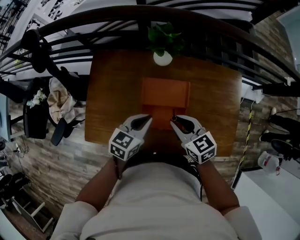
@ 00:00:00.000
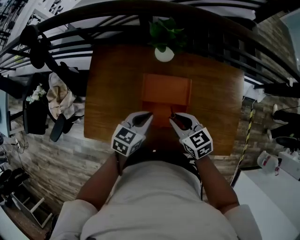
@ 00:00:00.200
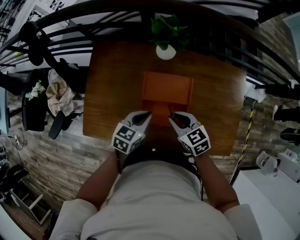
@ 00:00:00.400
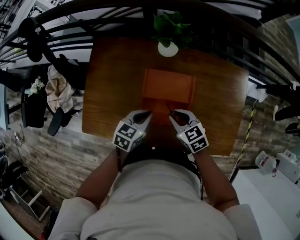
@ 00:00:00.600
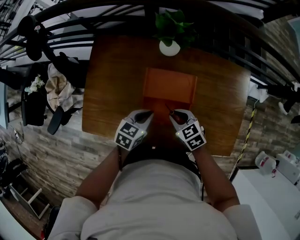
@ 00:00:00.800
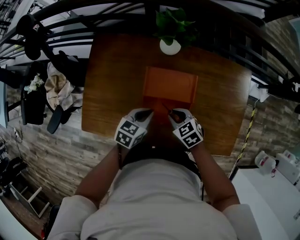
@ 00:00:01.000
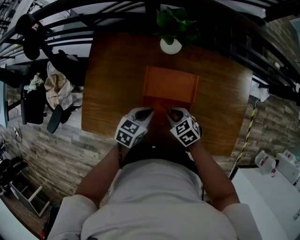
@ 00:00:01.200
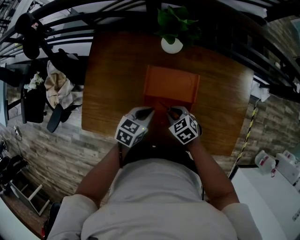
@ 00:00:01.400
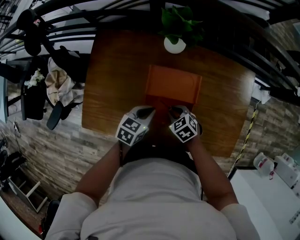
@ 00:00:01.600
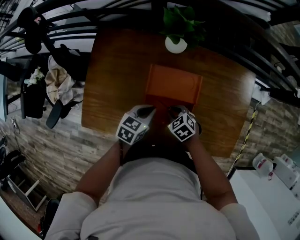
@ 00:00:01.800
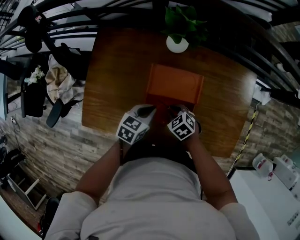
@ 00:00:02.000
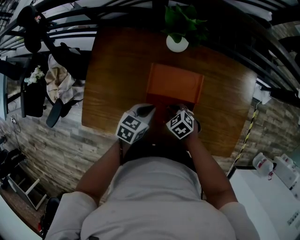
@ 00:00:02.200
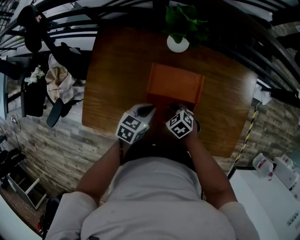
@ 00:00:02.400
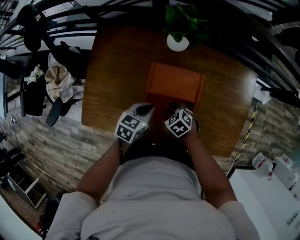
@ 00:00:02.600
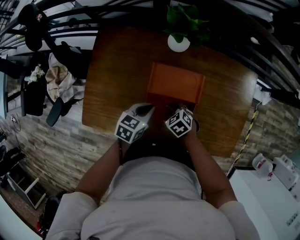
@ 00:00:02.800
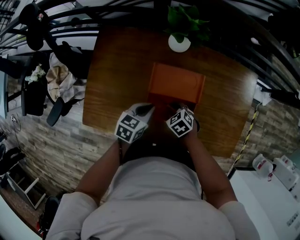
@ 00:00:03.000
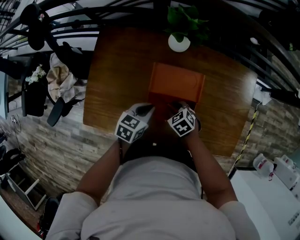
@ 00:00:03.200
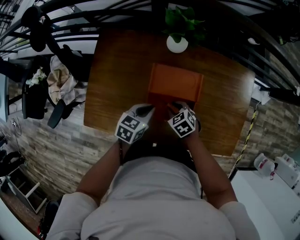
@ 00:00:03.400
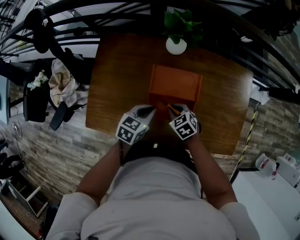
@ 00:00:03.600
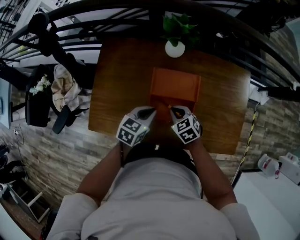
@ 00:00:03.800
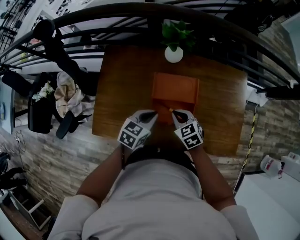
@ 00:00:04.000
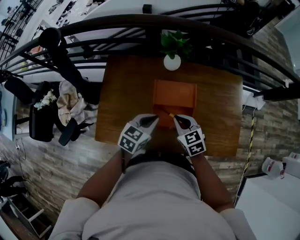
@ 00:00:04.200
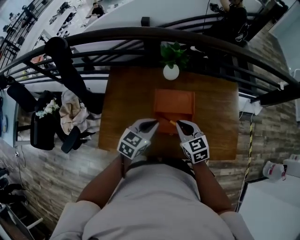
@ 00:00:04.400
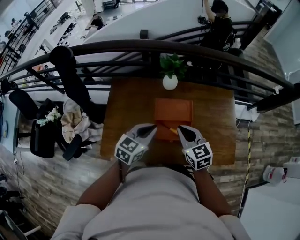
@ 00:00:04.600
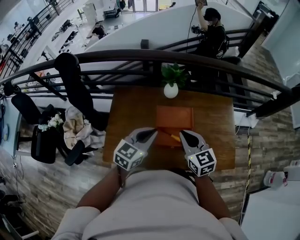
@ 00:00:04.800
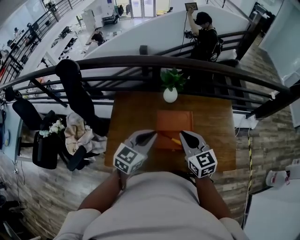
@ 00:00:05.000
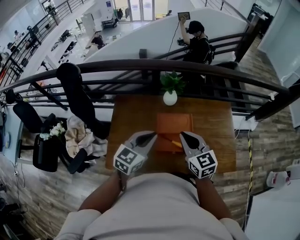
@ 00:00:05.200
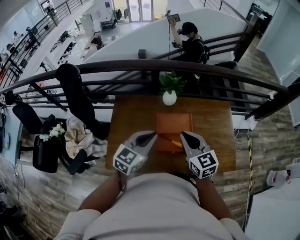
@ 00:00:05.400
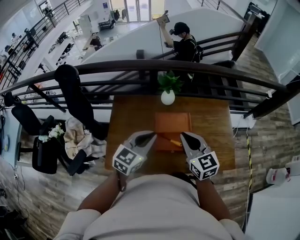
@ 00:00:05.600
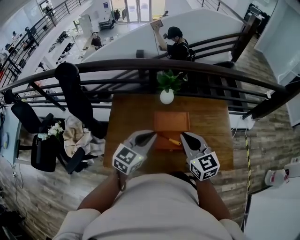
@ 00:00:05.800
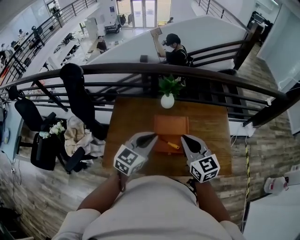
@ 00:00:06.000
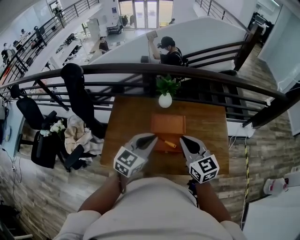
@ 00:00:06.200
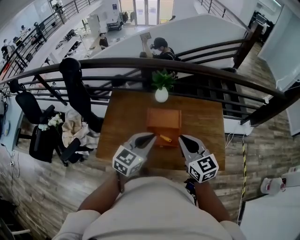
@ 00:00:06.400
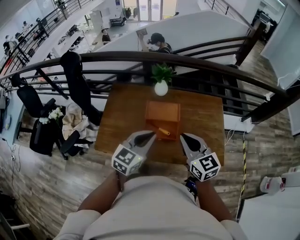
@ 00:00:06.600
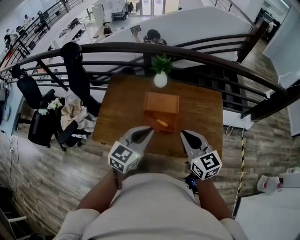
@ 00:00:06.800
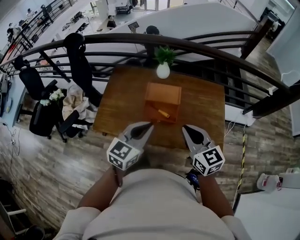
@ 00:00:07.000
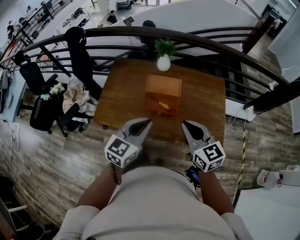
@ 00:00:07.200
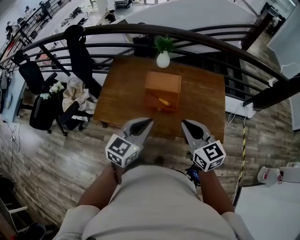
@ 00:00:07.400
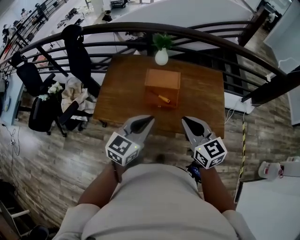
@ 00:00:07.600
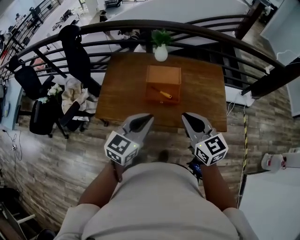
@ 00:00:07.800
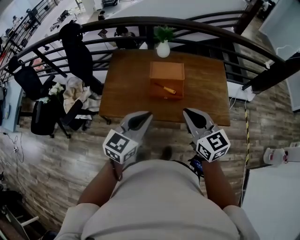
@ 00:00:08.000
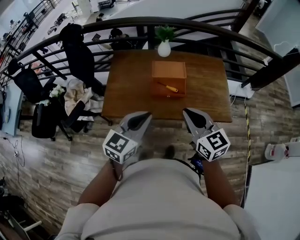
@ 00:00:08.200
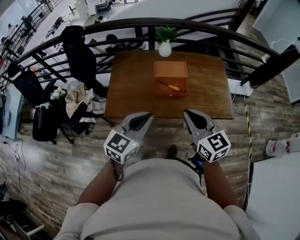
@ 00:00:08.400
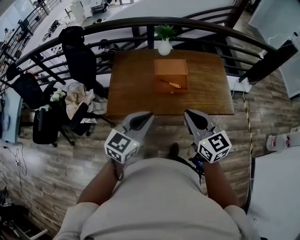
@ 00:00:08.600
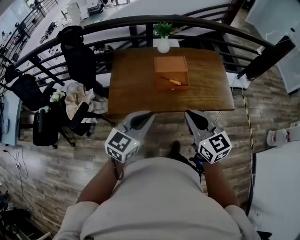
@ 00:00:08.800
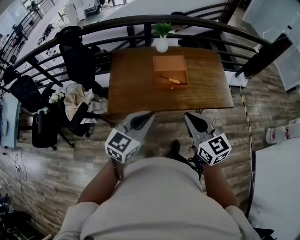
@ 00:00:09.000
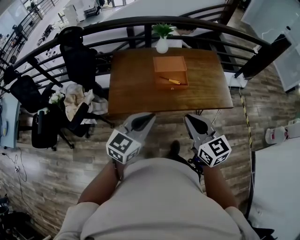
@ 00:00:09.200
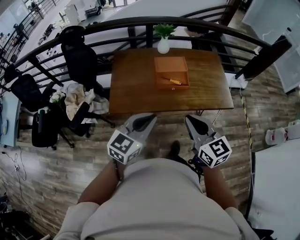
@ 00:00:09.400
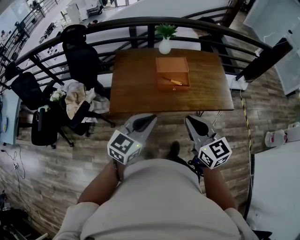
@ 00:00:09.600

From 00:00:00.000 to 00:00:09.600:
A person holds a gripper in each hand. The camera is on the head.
From 00:00:00.000 to 00:00:01.600: The right gripper goes approximately 20 cm downward, and swivels some 30 degrees; the left gripper shifts some 10 cm downward.
From 00:00:01.600 to 00:00:03.200: The grippers stay close to where they were, moving slightly.
From 00:00:03.200 to 00:00:04.800: The grippers both shift upward by about 30 cm. The left gripper swivels some 30 degrees. The right gripper tips its fingers upward by approximately 40 degrees, and closes.
From 00:00:04.800 to 00:00:06.400: Both grippers move to the right, backward and upward, some 15 cm.
From 00:00:06.400 to 00:00:08.000: Both grippers move backward, about 20 cm.
From 00:00:08.000 to 00:00:09.600: Both grippers move backward and to the left, approximately 15 cm.

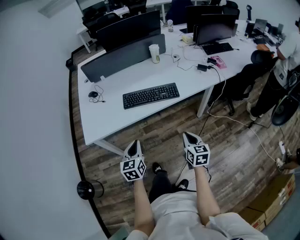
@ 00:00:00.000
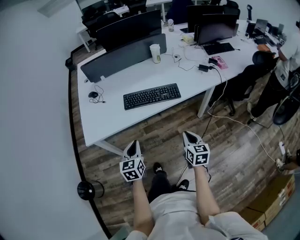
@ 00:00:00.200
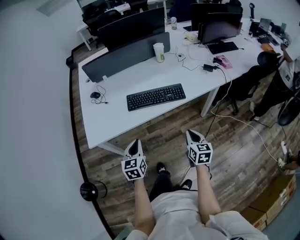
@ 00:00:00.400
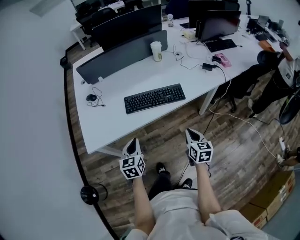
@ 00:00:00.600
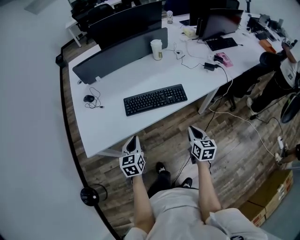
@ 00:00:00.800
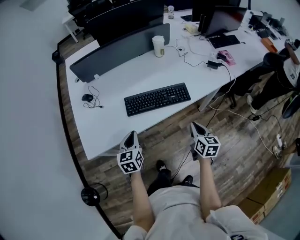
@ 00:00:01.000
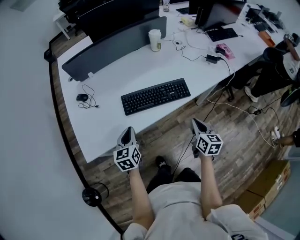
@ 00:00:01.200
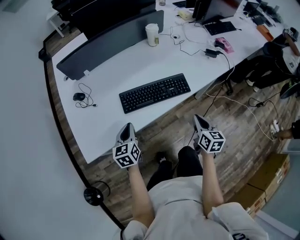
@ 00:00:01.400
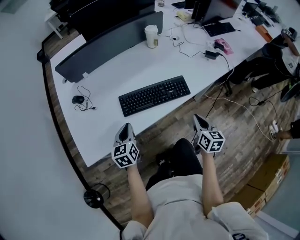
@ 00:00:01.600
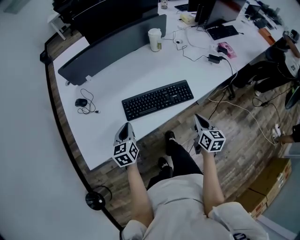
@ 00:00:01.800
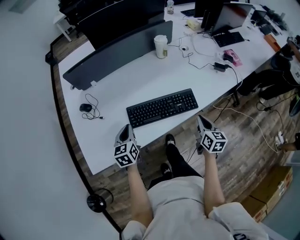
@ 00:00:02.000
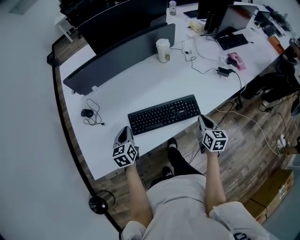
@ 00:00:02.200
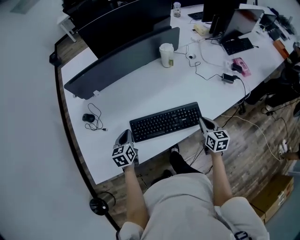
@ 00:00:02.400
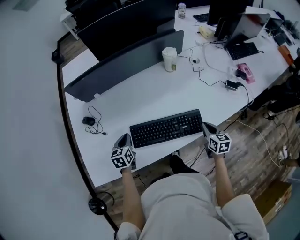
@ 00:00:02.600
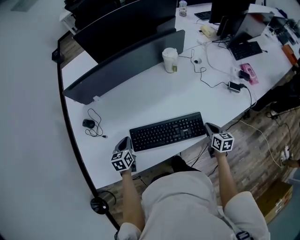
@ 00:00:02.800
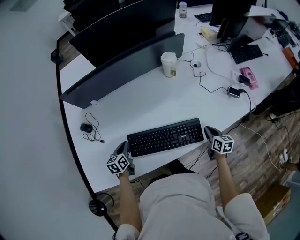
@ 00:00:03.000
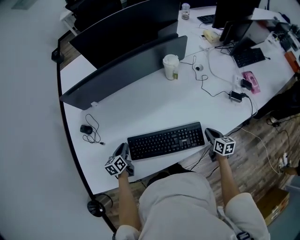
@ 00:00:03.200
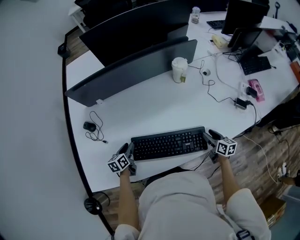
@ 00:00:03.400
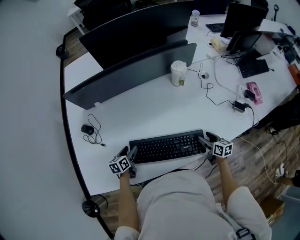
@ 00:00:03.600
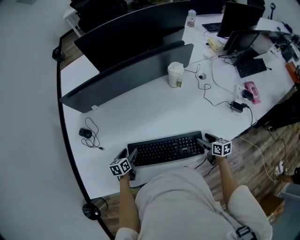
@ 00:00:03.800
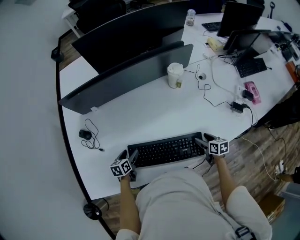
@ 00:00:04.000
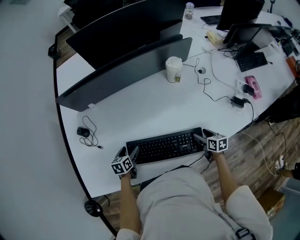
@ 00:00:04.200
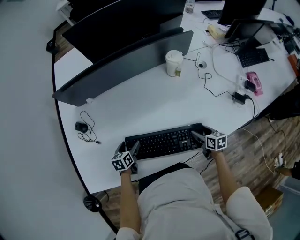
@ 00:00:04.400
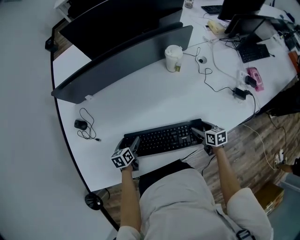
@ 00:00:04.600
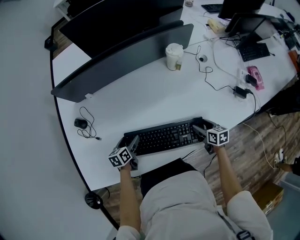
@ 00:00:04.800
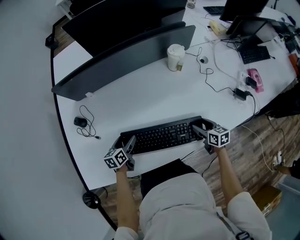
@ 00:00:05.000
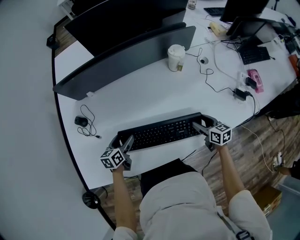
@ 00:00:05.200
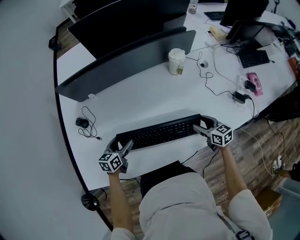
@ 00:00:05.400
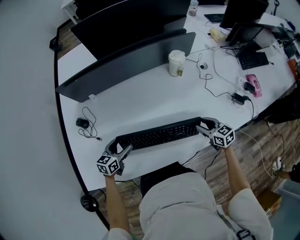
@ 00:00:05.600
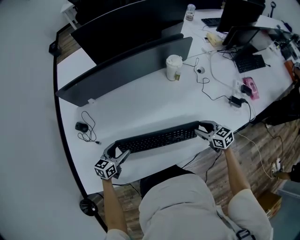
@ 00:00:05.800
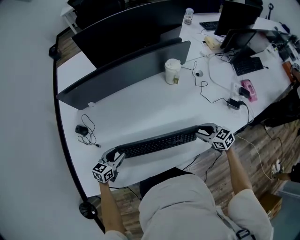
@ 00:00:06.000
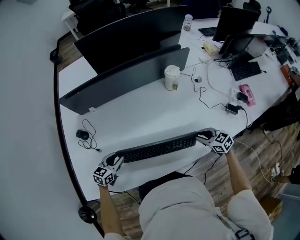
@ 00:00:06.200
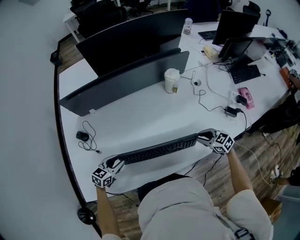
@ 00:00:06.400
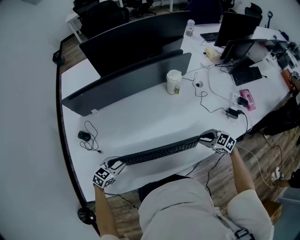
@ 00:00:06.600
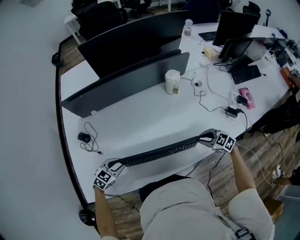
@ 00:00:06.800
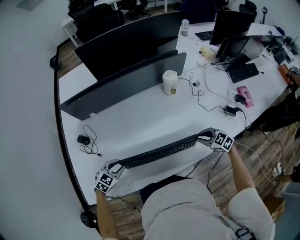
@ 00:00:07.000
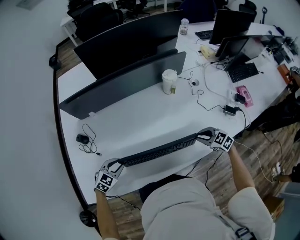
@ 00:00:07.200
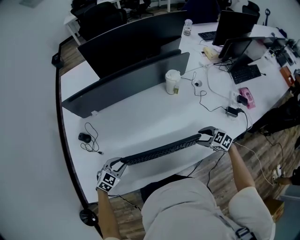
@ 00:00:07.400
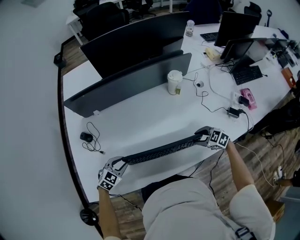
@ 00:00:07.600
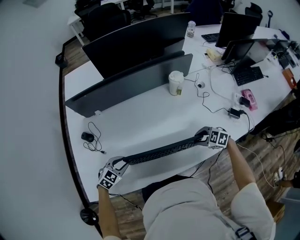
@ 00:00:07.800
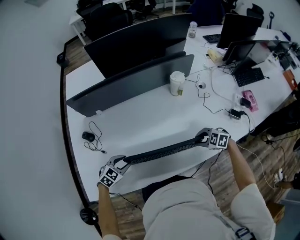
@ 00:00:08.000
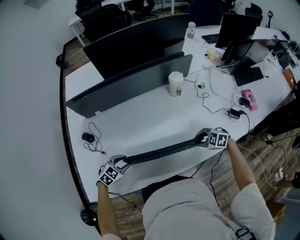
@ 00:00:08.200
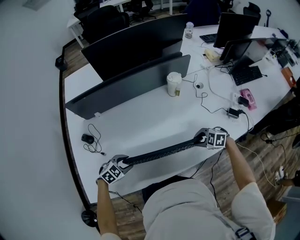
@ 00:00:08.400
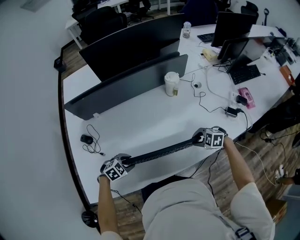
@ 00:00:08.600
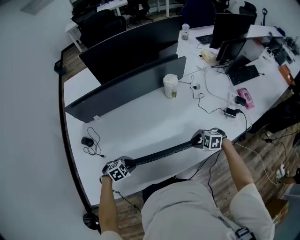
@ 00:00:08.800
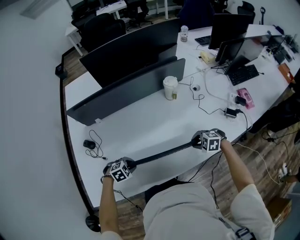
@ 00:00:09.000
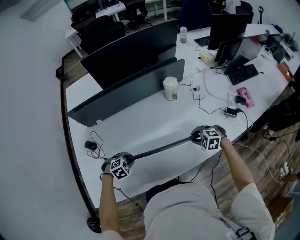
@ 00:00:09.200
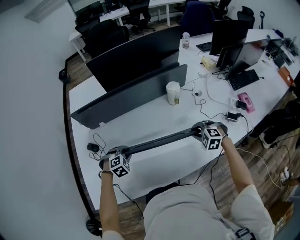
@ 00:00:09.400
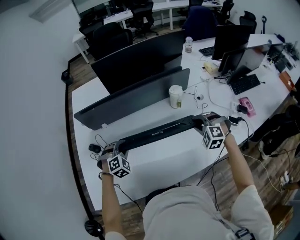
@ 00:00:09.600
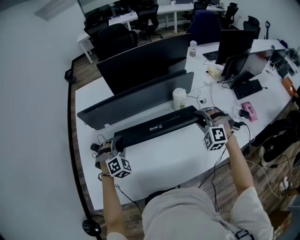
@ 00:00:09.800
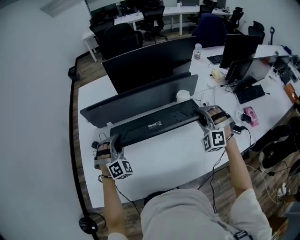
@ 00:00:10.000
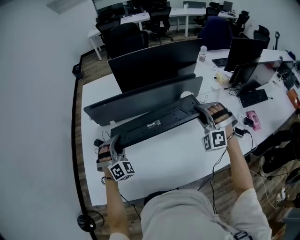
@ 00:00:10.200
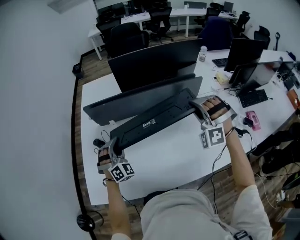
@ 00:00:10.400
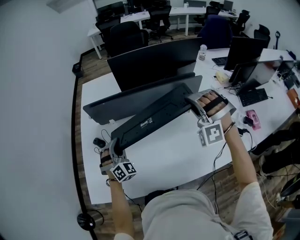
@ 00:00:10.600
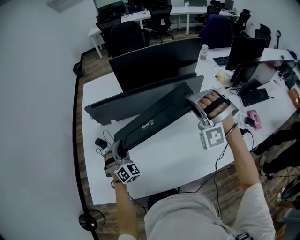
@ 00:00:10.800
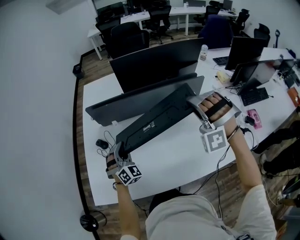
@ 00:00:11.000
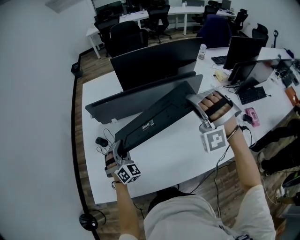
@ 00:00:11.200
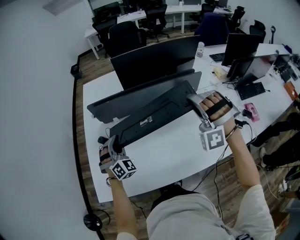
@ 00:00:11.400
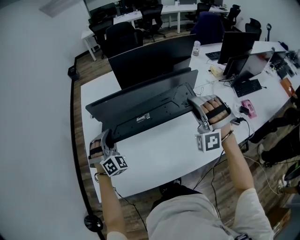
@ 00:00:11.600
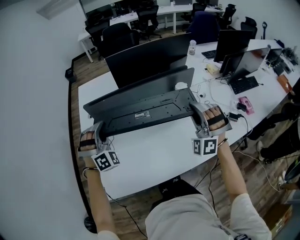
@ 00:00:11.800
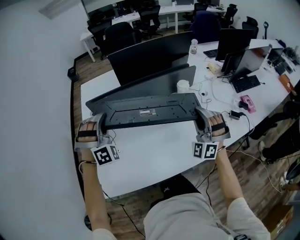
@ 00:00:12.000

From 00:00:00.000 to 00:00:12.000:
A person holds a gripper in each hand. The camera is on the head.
From 00:00:00.000 to 00:00:01.600: The left gripper heads forward and to the left, covering about 30 cm. Meanwhile the right gripper moves forward, some 20 cm.
From 00:00:01.600 to 00:00:03.000: The left gripper is displaced forward and downward by approximately 20 cm. Meanwhile the right gripper heads forward, downward and to the right, covering roughly 30 cm.
From 00:00:03.000 to 00:00:04.400: The left gripper shifts approximately 5 cm downward, and opens, while the right gripper is displaced to the left by approximately 5 cm, and opens its fingers.
From 00:00:04.400 to 00:00:06.000: The grippers both shift upward by some 10 cm. The left gripper rotates approximately 30 degrees, and closes; the right gripper swivels about 40 degrees, and closes up.
From 00:00:06.000 to 00:00:07.600: The right gripper rotates some 30 degrees, while the left gripper changes its angle by roughly 30 degrees.
From 00:00:07.600 to 00:00:09.000: The right gripper swivels about 20 degrees. The left gripper changes place by about 5 cm, and swivels some 30 degrees.
From 00:00:09.000 to 00:00:10.400: The two grippers go roughly 30 cm upward. The left gripper tips its fingers upward by some 50 degrees. The right gripper tilts its fingers roughly 50 degrees upward.
From 00:00:10.400 to 00:00:12.000: The left gripper heads upward, covering about 15 cm, and rotates approximately 30 degrees, while the right gripper shifts about 10 cm backward, and rotates about 30 degrees.

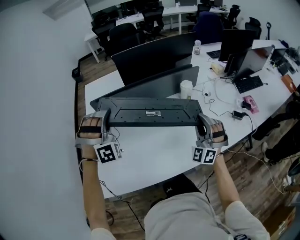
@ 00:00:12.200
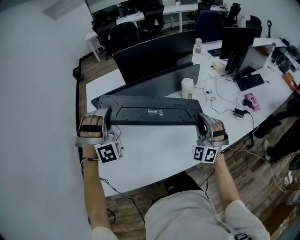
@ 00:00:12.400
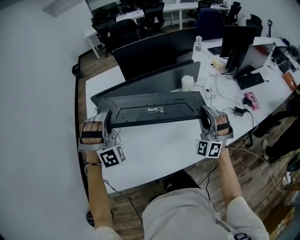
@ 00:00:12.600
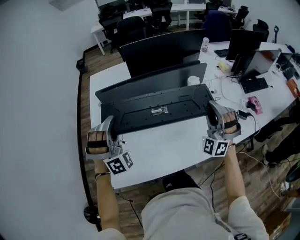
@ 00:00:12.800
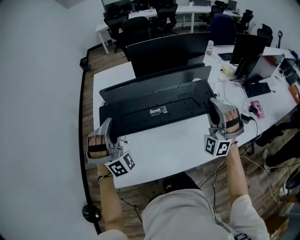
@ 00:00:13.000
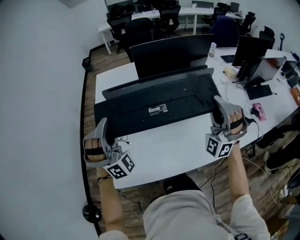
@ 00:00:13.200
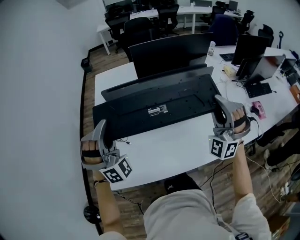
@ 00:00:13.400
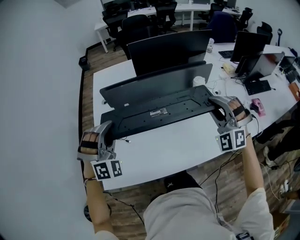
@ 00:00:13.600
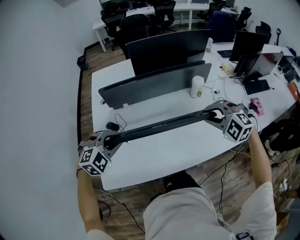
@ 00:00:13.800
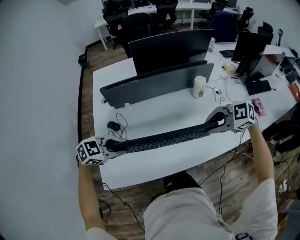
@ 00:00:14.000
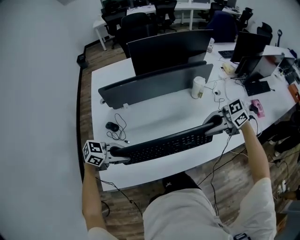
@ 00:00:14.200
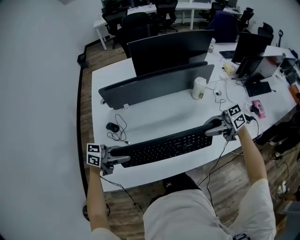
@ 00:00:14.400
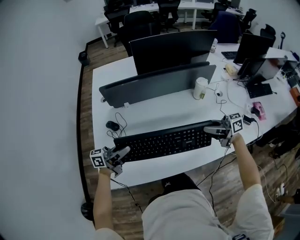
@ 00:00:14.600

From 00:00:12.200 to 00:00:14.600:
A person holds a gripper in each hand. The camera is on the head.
From 00:00:12.200 to 00:00:13.400: The right gripper heads upward, covering approximately 15 cm; the left gripper is displaced backward and to the left by approximately 10 cm, and rotates roughly 30 degrees.
From 00:00:13.400 to 00:00:14.600: Both grippers travel together downward, approximately 20 cm. The left gripper rotates around the line of its fingers by roughly 120 degrees, counterclockwise from behind; the right gripper rotates roughly 150 degrees.
